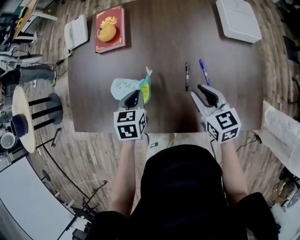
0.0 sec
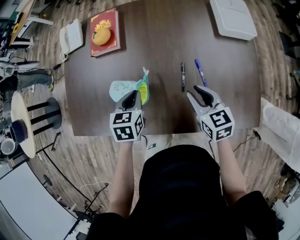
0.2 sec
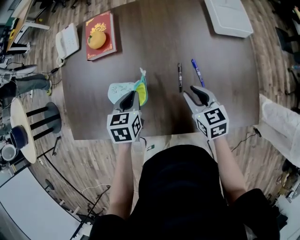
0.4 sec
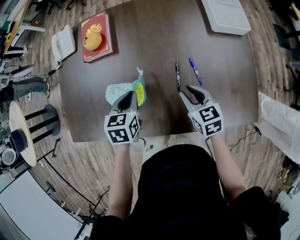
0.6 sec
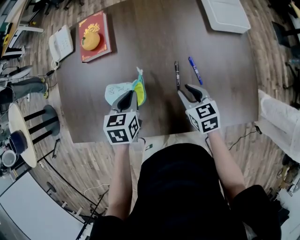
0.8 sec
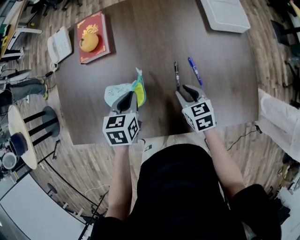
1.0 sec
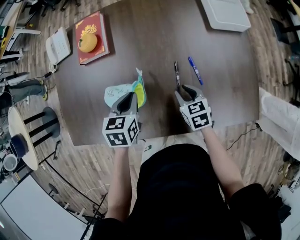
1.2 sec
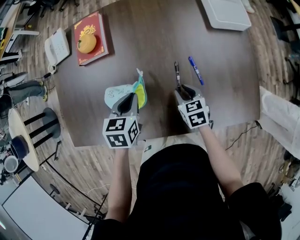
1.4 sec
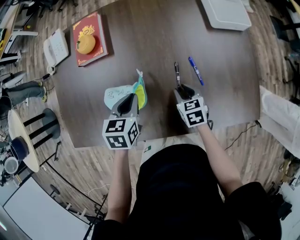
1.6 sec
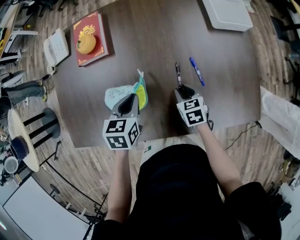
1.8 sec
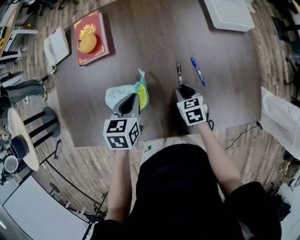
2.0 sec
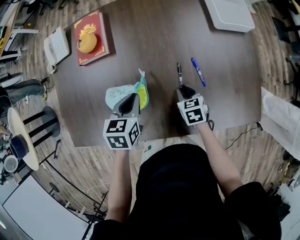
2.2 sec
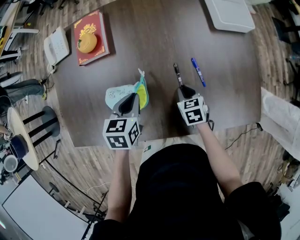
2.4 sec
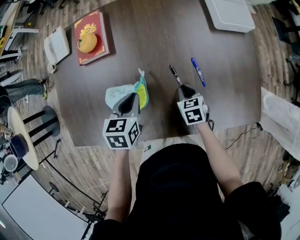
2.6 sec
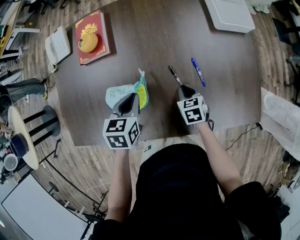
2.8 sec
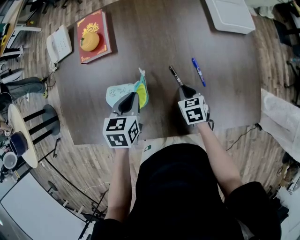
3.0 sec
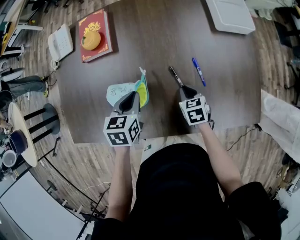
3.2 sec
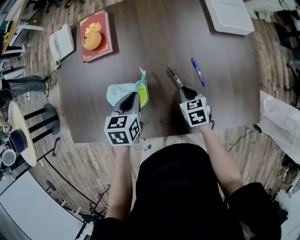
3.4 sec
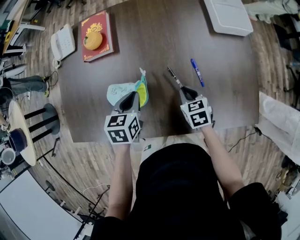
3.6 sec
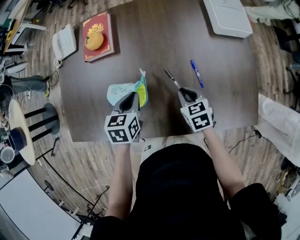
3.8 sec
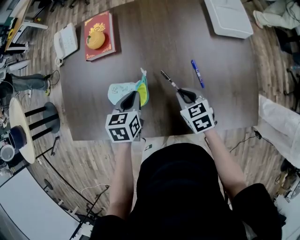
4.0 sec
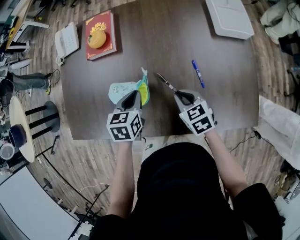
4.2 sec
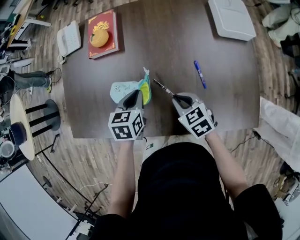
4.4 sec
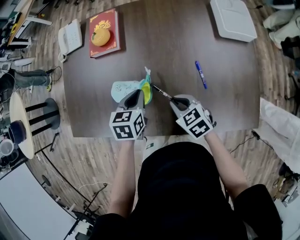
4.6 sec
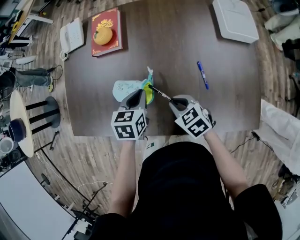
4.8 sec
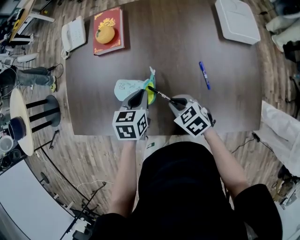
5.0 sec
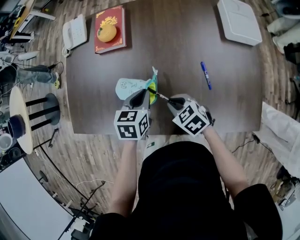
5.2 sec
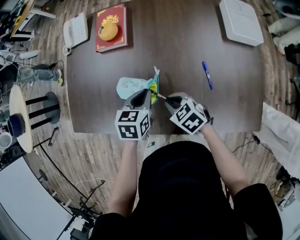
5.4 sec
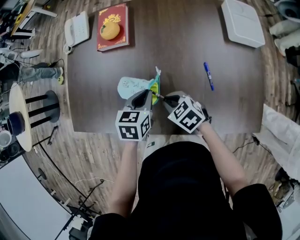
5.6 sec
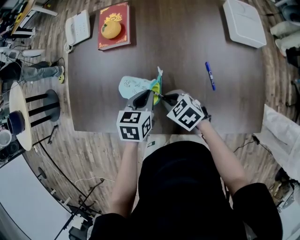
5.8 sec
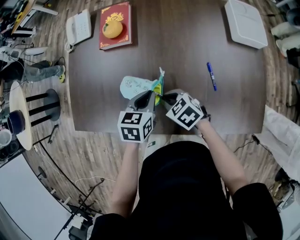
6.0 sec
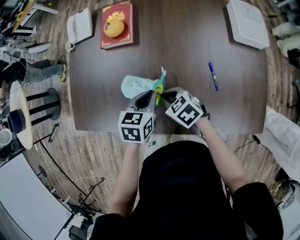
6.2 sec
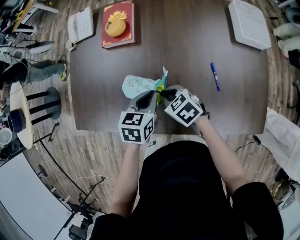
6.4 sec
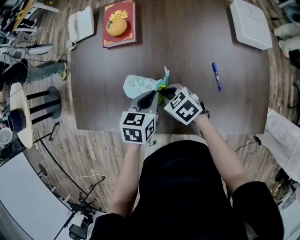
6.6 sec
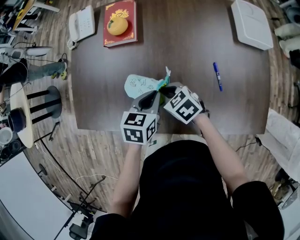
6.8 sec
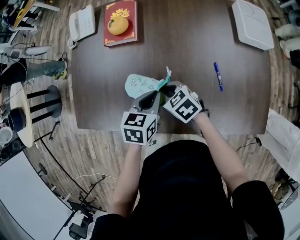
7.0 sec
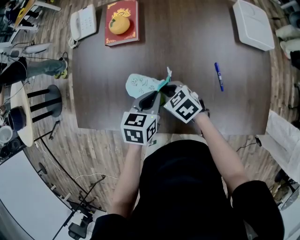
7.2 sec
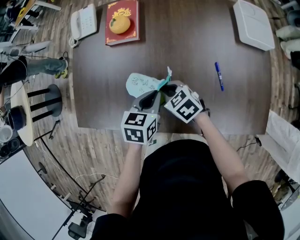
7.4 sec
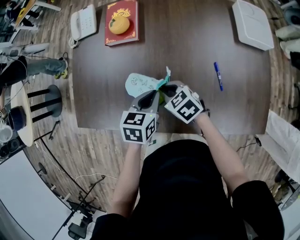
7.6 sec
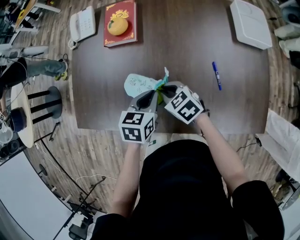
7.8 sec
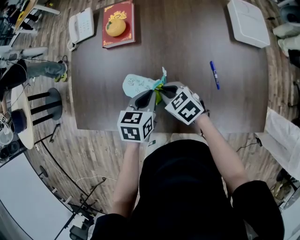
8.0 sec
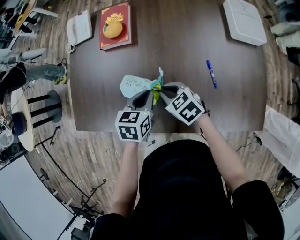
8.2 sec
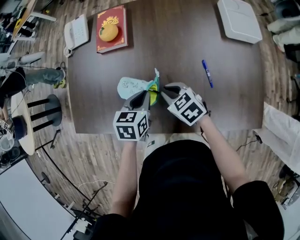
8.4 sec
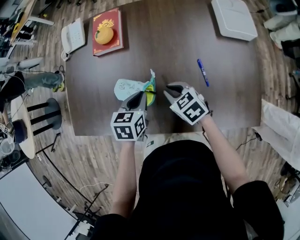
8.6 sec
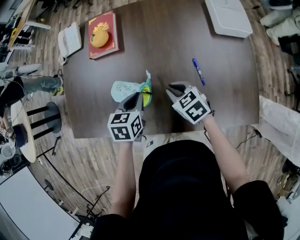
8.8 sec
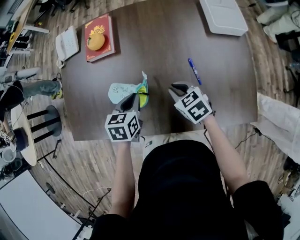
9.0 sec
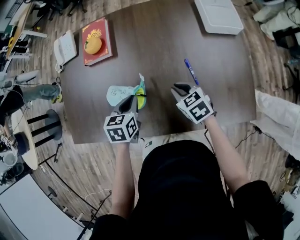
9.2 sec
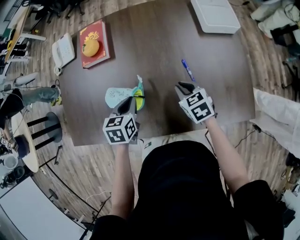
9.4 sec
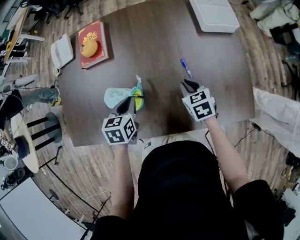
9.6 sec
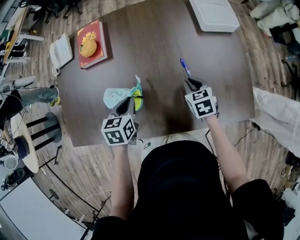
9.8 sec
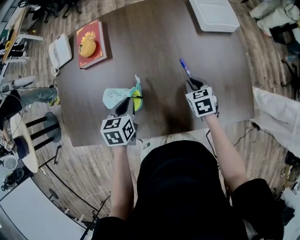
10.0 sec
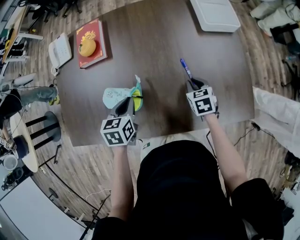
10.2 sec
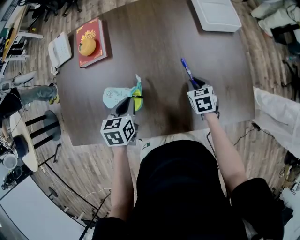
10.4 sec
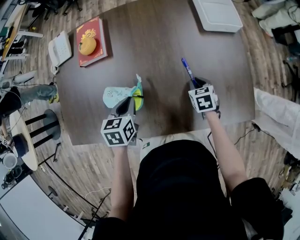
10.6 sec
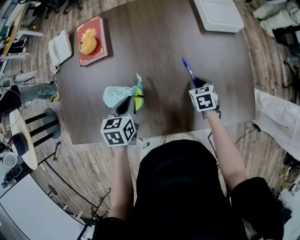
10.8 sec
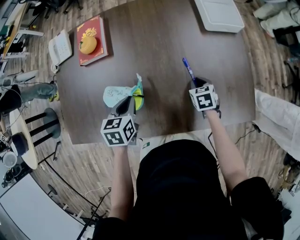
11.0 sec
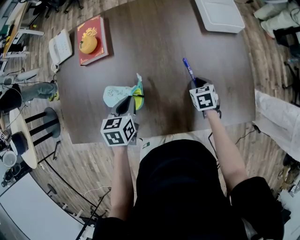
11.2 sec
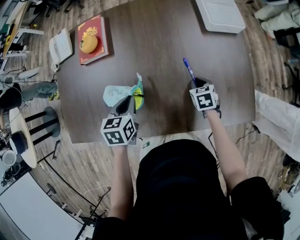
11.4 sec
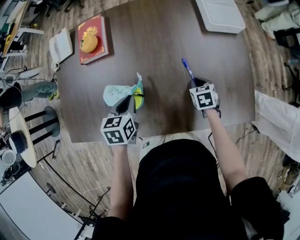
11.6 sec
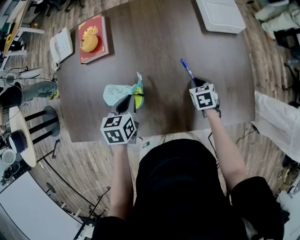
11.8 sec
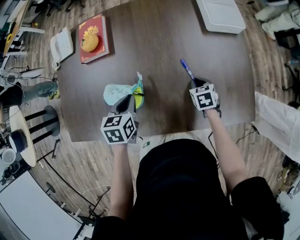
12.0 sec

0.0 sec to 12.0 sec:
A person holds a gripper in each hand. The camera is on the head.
0.0 sec to 1.6 sec: The right gripper shifts roughly 15 cm downward, and turns by some 20 degrees.
1.6 sec to 3.0 sec: There are only small adjustments of the grippers.
3.0 sec to 4.4 sec: The right gripper shifts some 10 cm upward and to the left, and swivels about 20 degrees.
4.4 sec to 6.0 sec: The right gripper travels to the left by about 10 cm.
6.0 sec to 7.6 sec: The grippers stay close to where they were, moving slightly.
7.6 sec to 9.0 sec: The right gripper shifts roughly 15 cm to the right.
9.0 sec to 10.4 sec: The right gripper moves to the right and downward, roughly 15 cm, and turns by approximately 30 degrees.
10.4 sec to 12.0 sec: There are only small adjustments of the grippers.

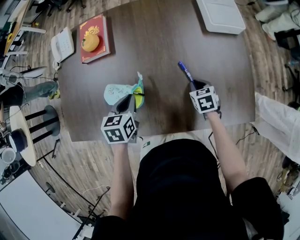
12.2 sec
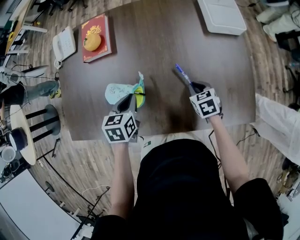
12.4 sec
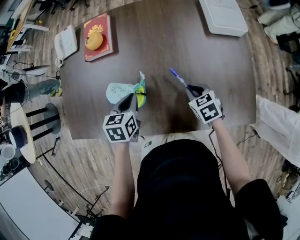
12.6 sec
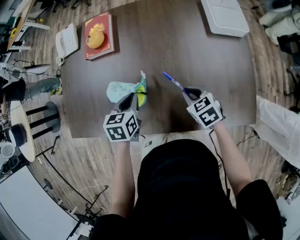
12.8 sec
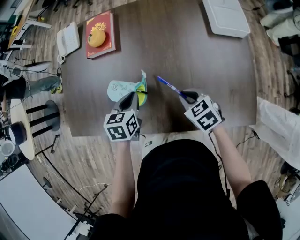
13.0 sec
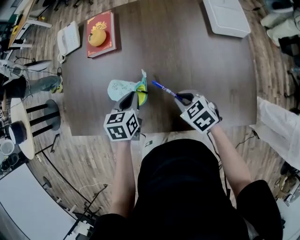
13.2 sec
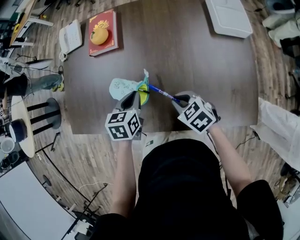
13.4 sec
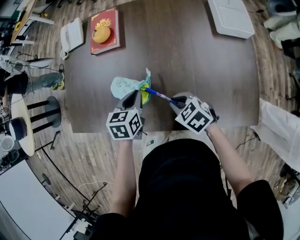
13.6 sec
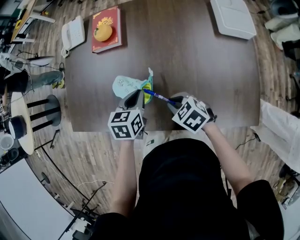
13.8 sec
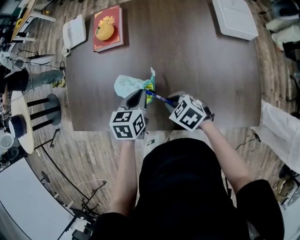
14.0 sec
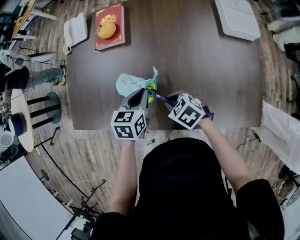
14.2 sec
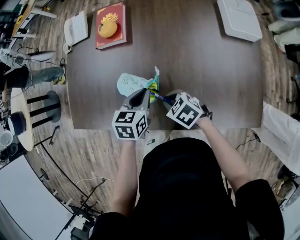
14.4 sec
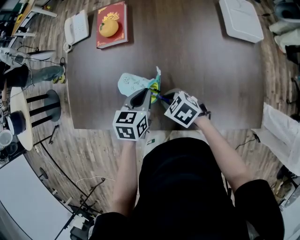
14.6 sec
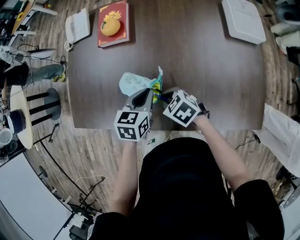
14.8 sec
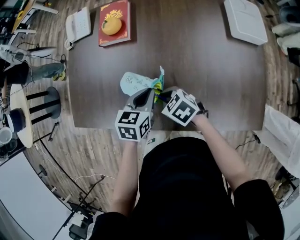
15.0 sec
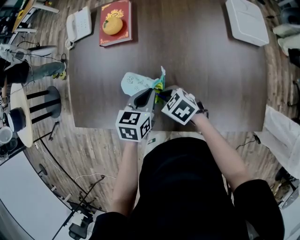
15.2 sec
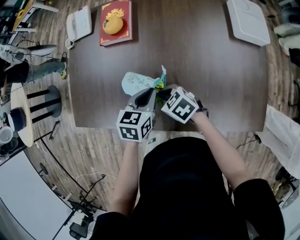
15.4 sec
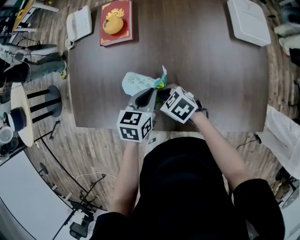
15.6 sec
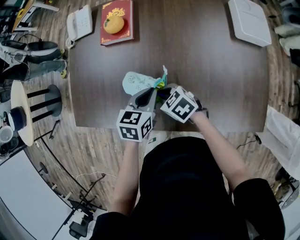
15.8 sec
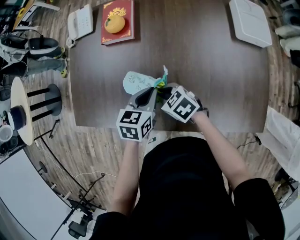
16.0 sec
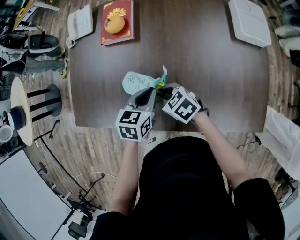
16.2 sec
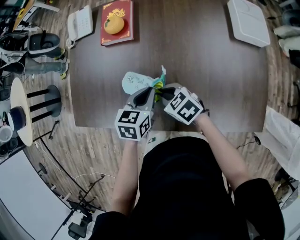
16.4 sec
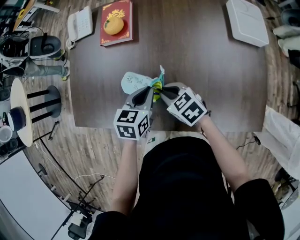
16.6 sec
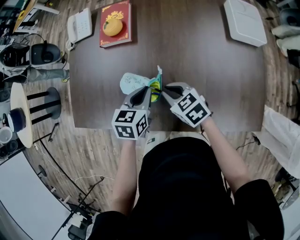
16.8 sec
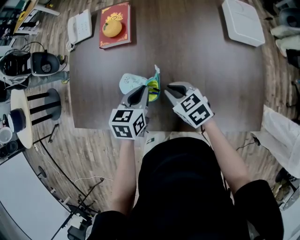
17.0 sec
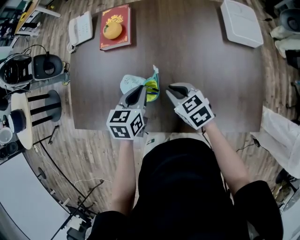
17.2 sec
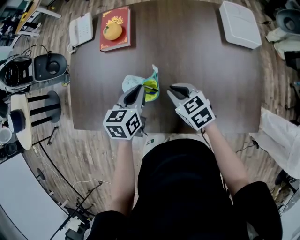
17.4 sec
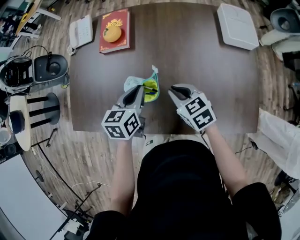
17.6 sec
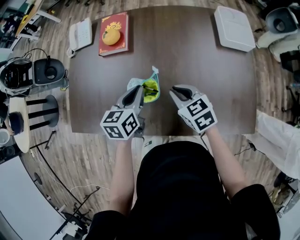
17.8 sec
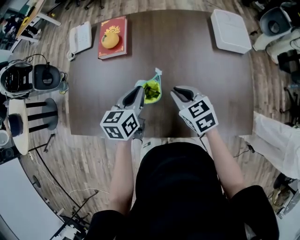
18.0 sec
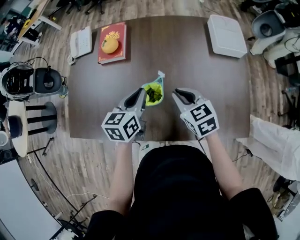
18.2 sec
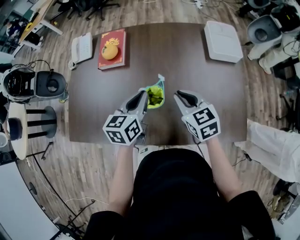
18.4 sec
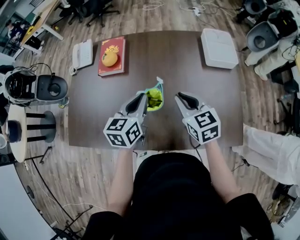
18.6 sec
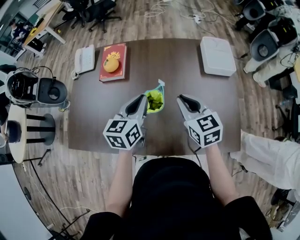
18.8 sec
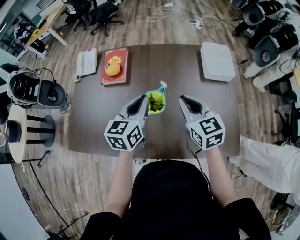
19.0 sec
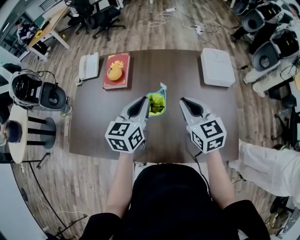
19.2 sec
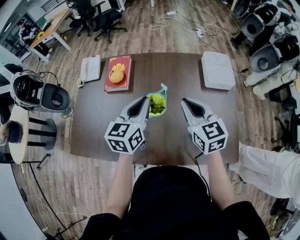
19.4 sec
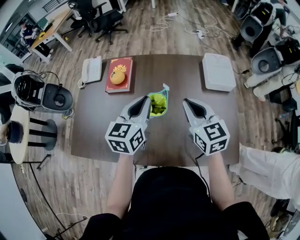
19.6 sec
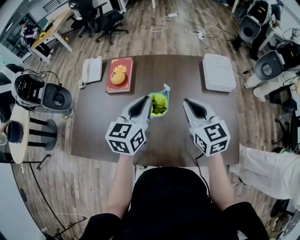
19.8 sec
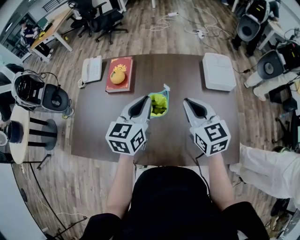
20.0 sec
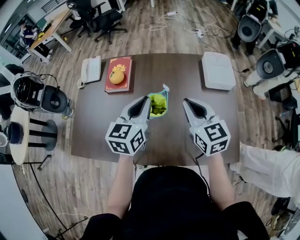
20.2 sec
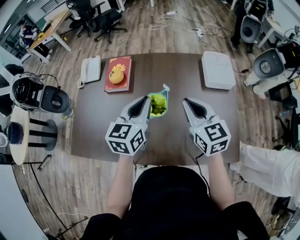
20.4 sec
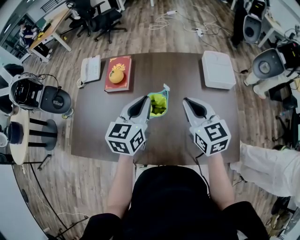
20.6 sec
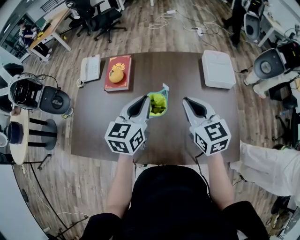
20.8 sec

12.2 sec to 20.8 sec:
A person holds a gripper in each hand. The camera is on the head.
12.2 sec to 13.6 sec: The right gripper shifts by roughly 20 cm, and changes its angle by approximately 40 degrees.
13.6 sec to 15.0 sec: The right gripper goes about 10 cm to the left and forward.
15.0 sec to 16.6 sec: There are only small adjustments of the grippers.
16.6 sec to 18.0 sec: The right gripper shifts some 10 cm to the right and upward. Meanwhile the left gripper is displaced upward by approximately 5 cm.
18.0 sec to 19.4 sec: The two grippers go about 15 cm upward and to the right. The right gripper changes its angle by roughly 20 degrees.
19.4 sec to 20.8 sec: Neither gripper changes place.

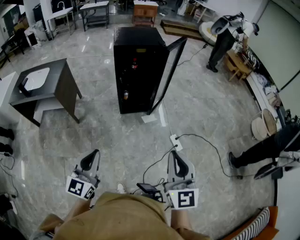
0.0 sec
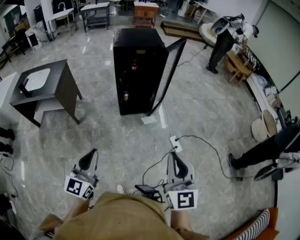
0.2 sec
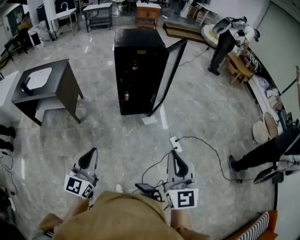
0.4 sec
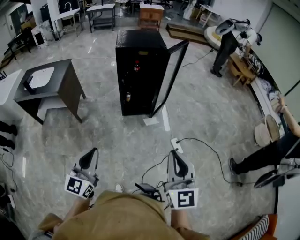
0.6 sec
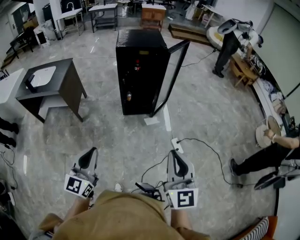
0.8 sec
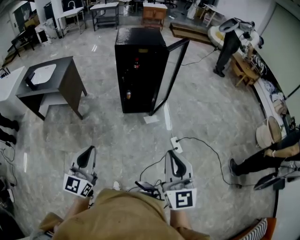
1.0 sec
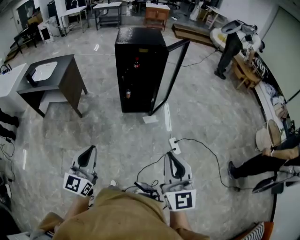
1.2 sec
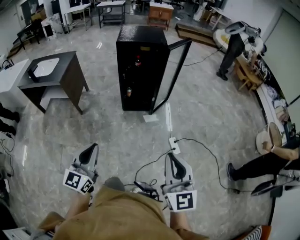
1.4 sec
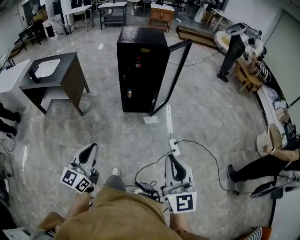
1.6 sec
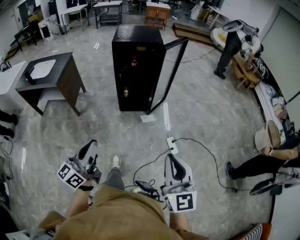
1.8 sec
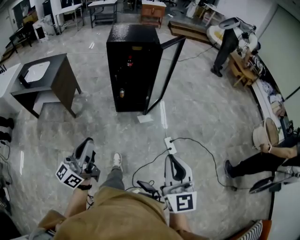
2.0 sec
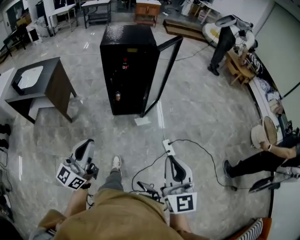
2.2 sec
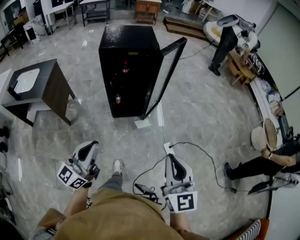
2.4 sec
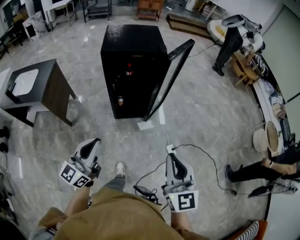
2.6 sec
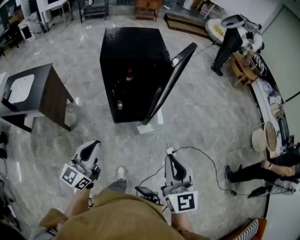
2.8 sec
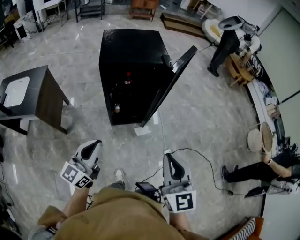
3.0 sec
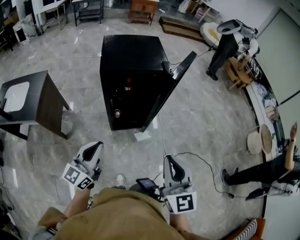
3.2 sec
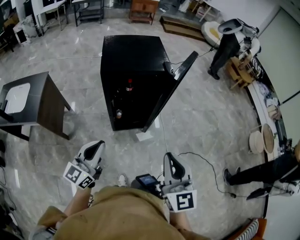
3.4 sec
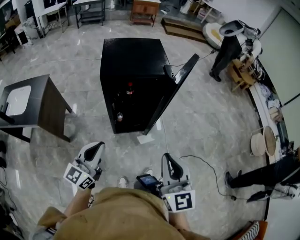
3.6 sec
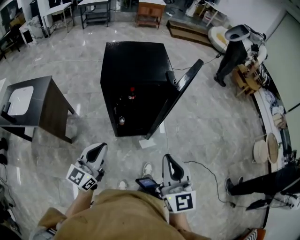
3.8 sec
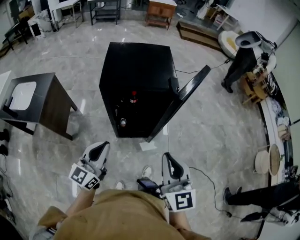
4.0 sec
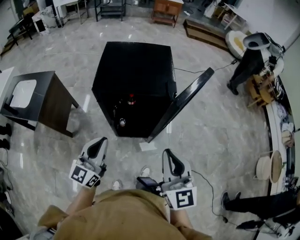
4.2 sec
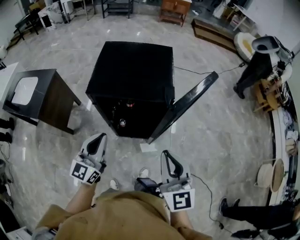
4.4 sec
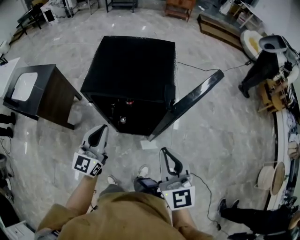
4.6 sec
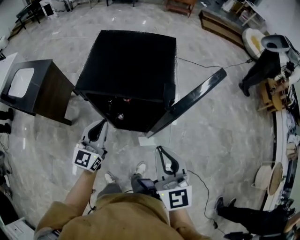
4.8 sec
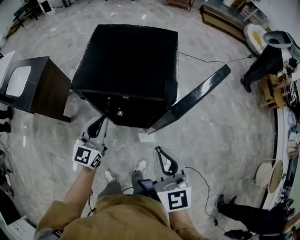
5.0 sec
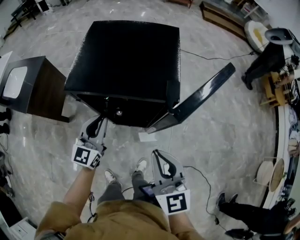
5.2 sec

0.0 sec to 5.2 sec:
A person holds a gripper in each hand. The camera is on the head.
0.0 sec to 1.8 sec: The two grippers go about 10 cm to the right. The left gripper changes its angle by roughly 30 degrees.
1.8 sec to 3.4 sec: The pair of grippers is taken forward and to the left, about 50 cm.
3.4 sec to 5.2 sec: The grippers both shift forward by some 35 cm. The left gripper turns by roughly 30 degrees. The right gripper rotates about 20 degrees.
